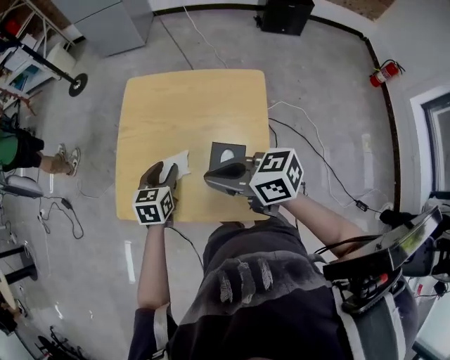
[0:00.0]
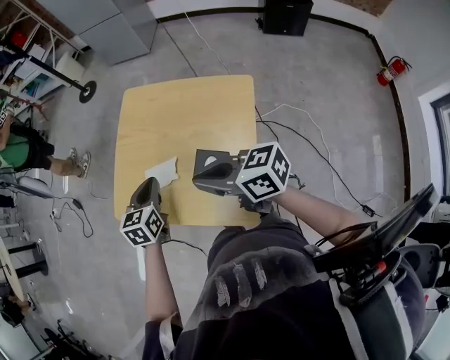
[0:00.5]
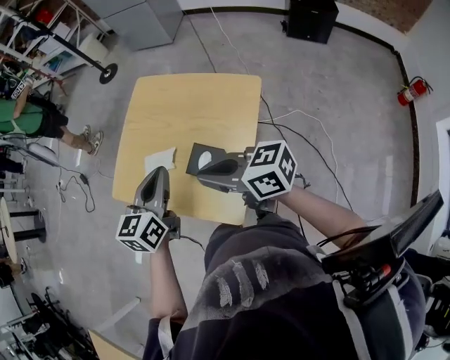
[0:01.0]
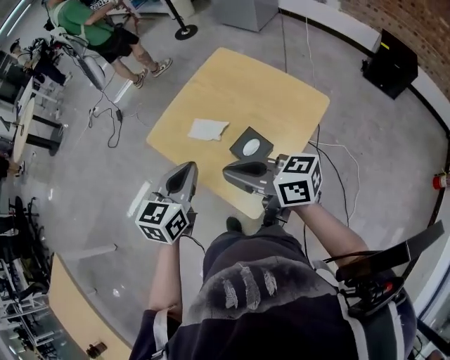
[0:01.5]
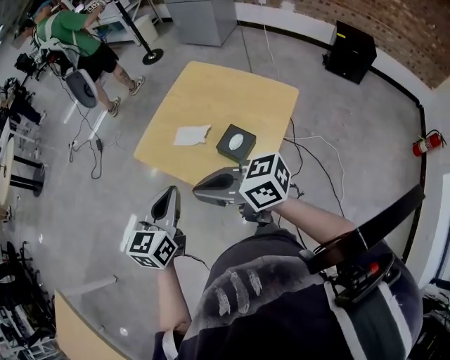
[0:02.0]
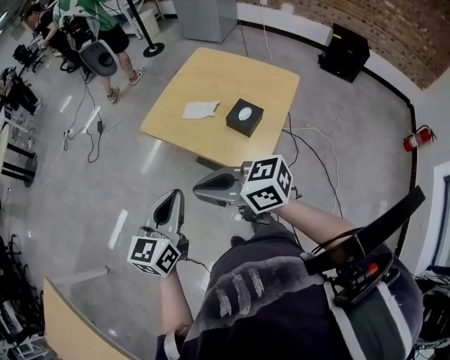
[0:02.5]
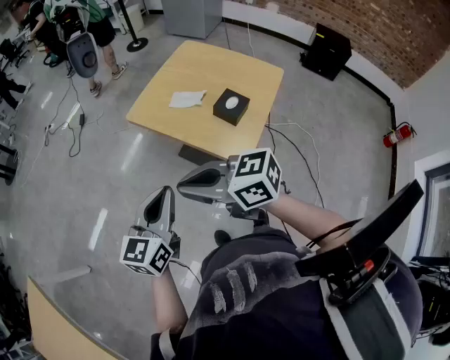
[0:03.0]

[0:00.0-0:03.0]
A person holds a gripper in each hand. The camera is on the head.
0:00.0 to 0:01.5: The left gripper shifts approximately 25 cm backward and upward, rotates approximately 30 degrees, and closes; the right gripper shifts approximately 15 cm backward and upward, and changes its angle by some 30 degrees.
0:01.5 to 0:03.0: The two grippers go roughly 30 cm to the left and backward.

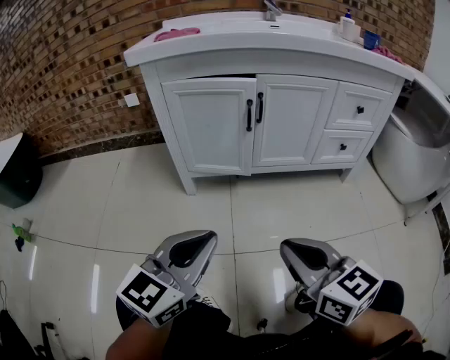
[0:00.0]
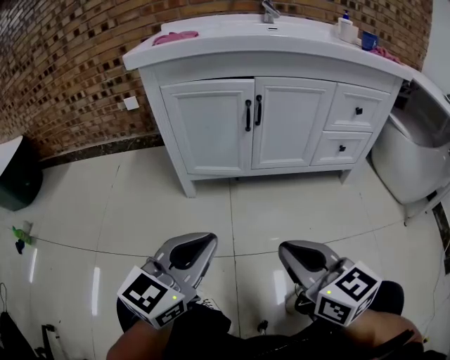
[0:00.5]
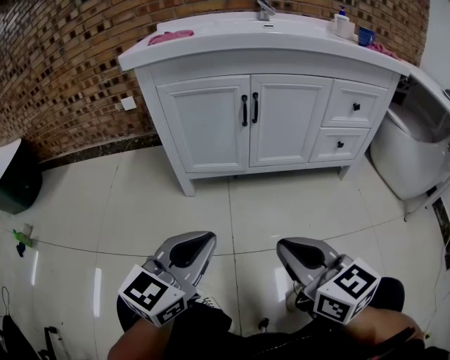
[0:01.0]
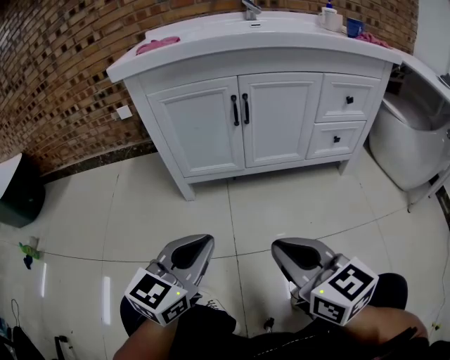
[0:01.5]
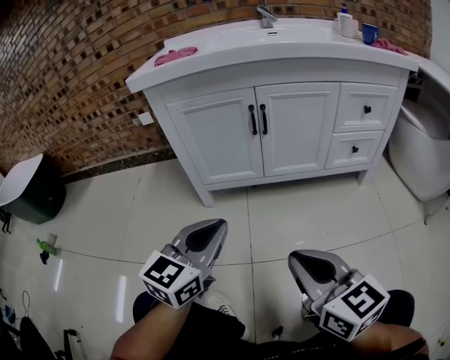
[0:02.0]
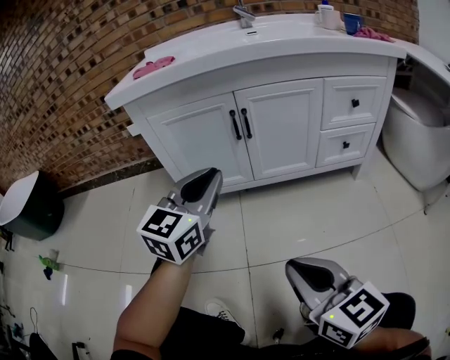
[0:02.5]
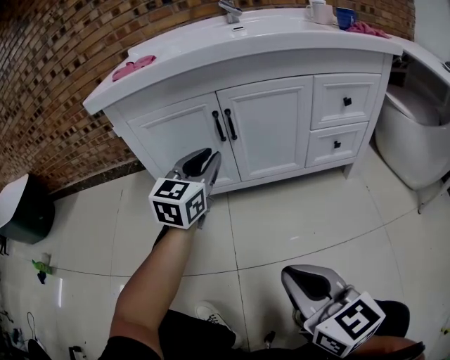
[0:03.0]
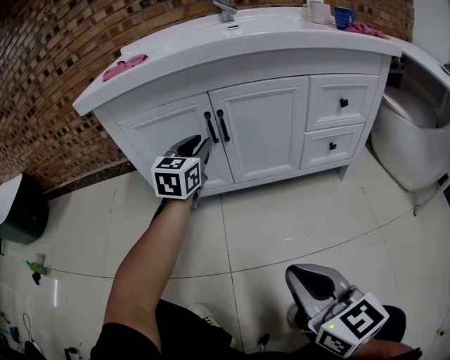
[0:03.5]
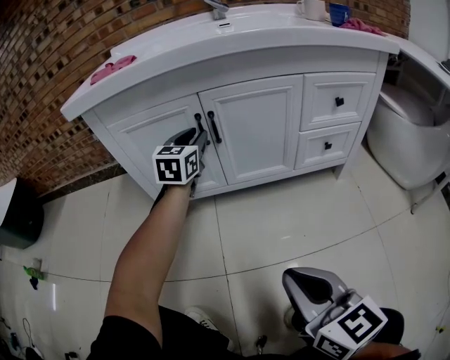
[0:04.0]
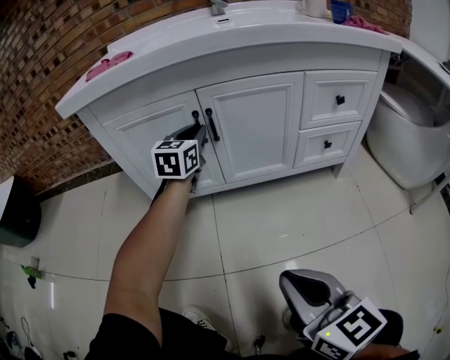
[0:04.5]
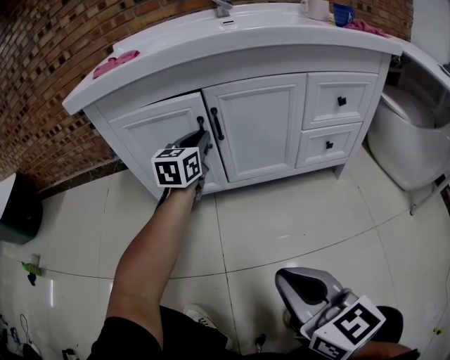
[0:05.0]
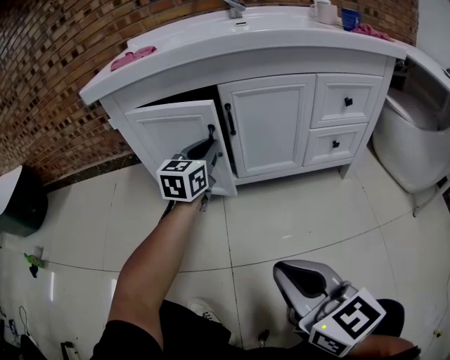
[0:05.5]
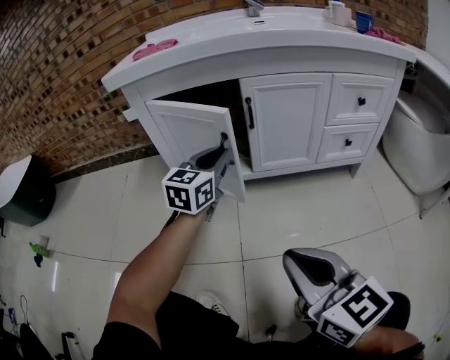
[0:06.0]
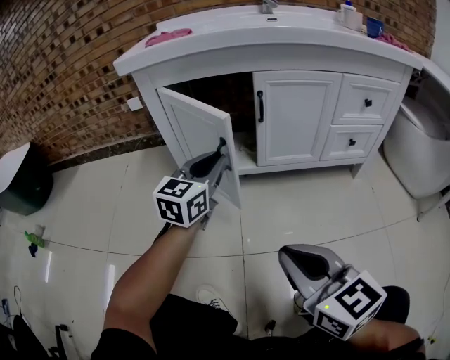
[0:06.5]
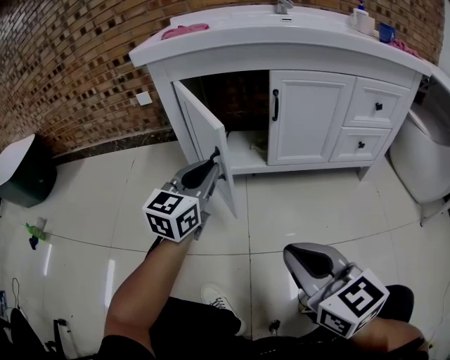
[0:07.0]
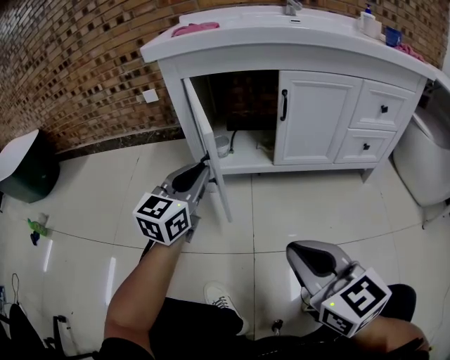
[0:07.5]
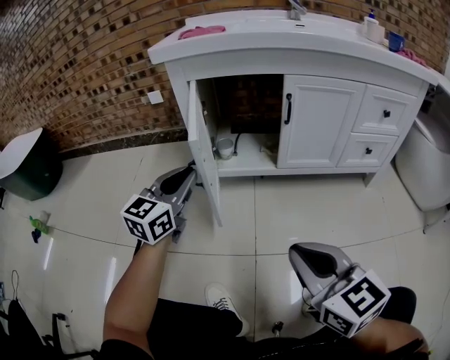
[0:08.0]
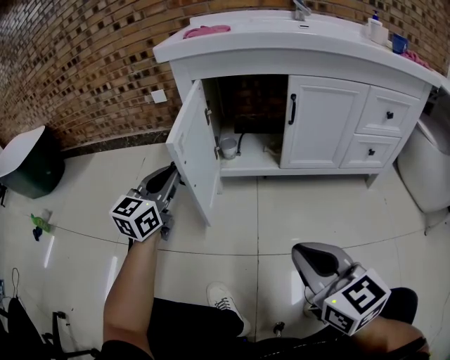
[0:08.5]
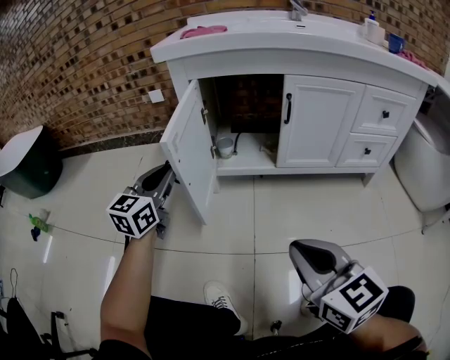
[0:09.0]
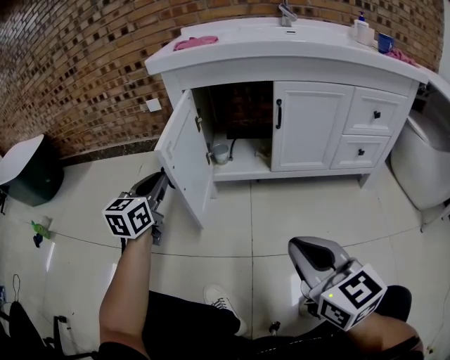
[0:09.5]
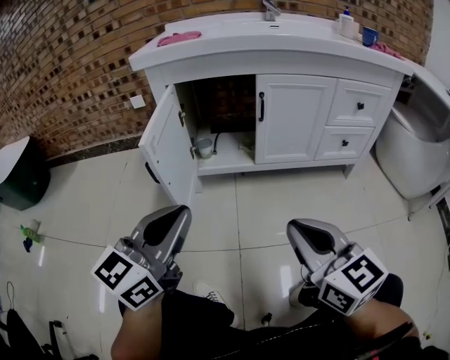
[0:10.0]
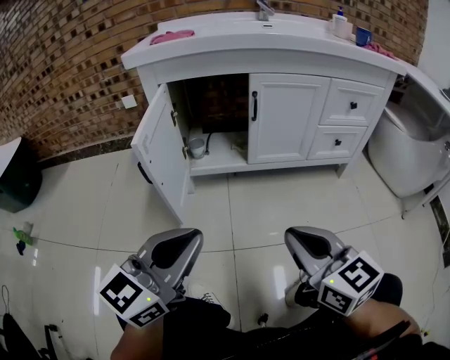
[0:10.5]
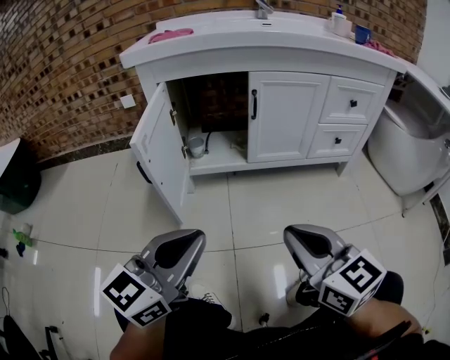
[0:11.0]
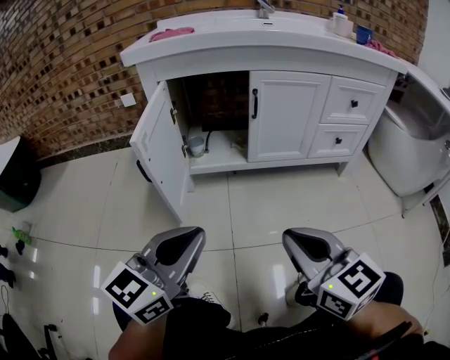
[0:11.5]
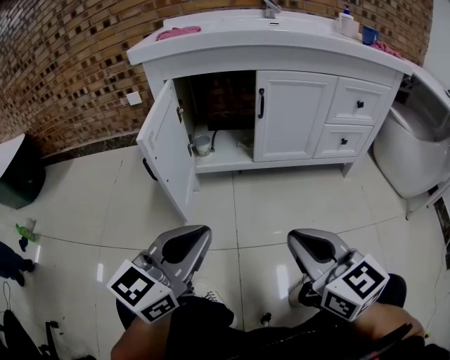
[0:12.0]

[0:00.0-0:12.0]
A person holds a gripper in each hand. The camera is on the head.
0:00.0 to 0:02.0: The left gripper is displaced forward by roughly 5 cm.
0:02.0 to 0:04.0: The left gripper is displaced forward by some 35 cm, and opens its fingers. Meanwhile the right gripper travels to the right by approximately 10 cm.
0:04.0 to 0:06.0: The right gripper heads to the left, covering some 5 cm. Meanwhile the left gripper goes roughly 15 cm backward, and closes.
0:06.0 to 0:08.0: The left gripper moves to the left and backward, approximately 20 cm. The right gripper is displaced to the left by roughly 5 cm.
0:08.0 to 0:10.0: The left gripper shifts about 20 cm backward and upward. The right gripper moves about 5 cm.
0:10.0 to 0:12.0: The left gripper ends up about 5 cm from where it was.

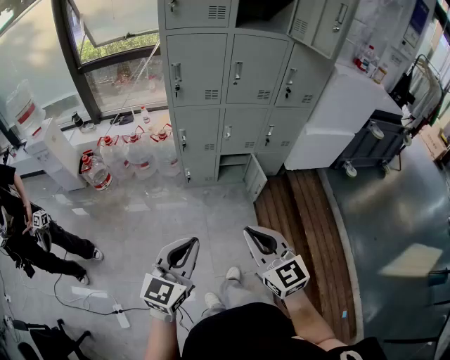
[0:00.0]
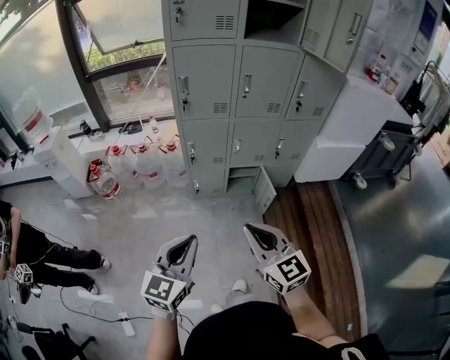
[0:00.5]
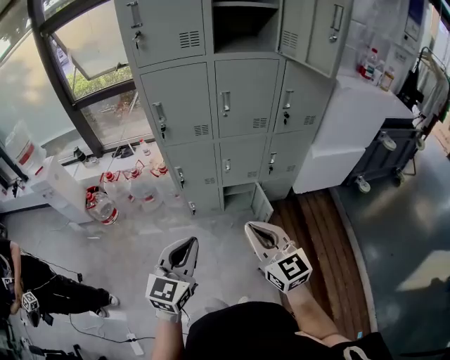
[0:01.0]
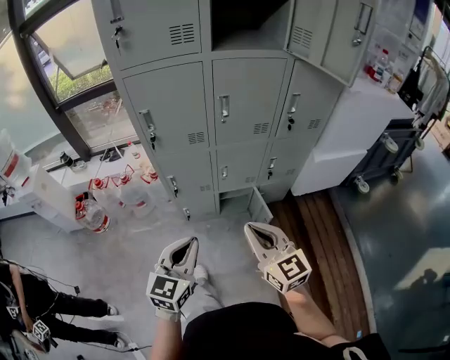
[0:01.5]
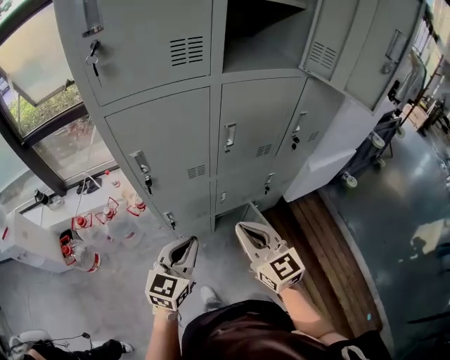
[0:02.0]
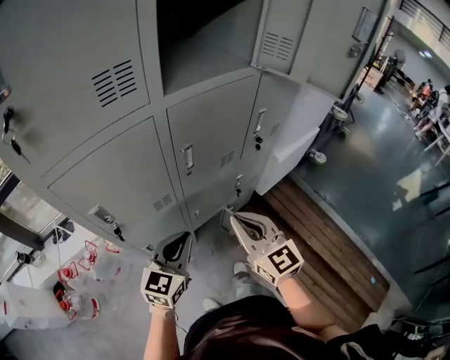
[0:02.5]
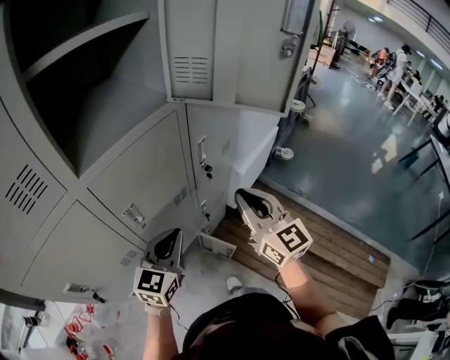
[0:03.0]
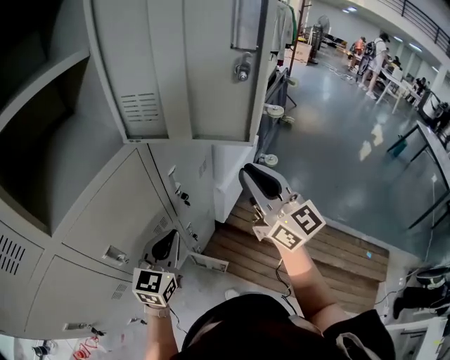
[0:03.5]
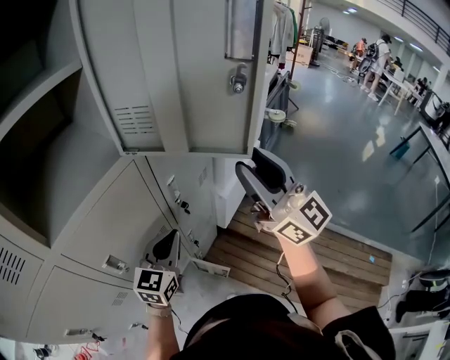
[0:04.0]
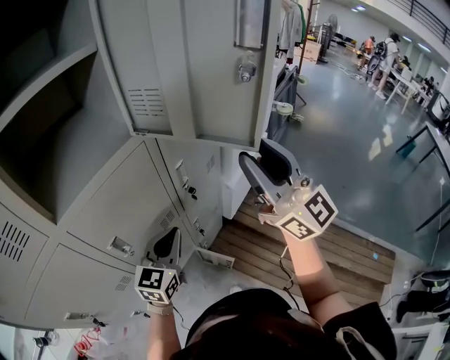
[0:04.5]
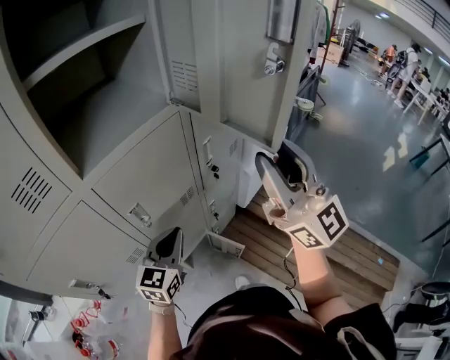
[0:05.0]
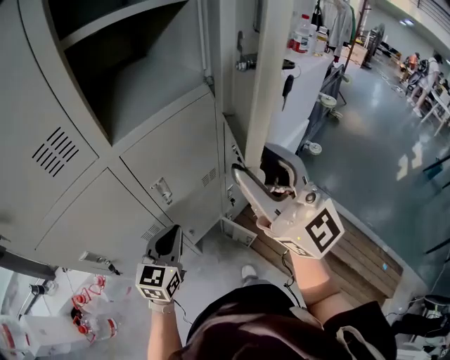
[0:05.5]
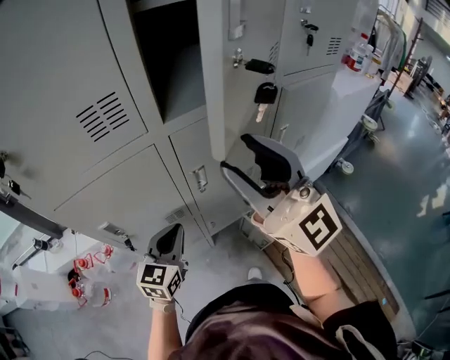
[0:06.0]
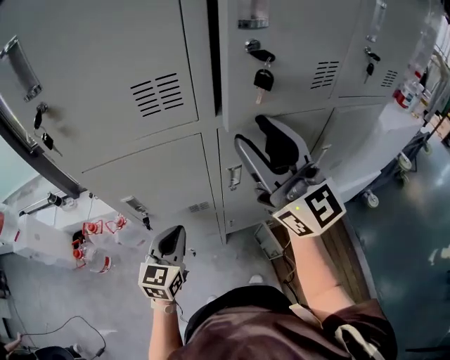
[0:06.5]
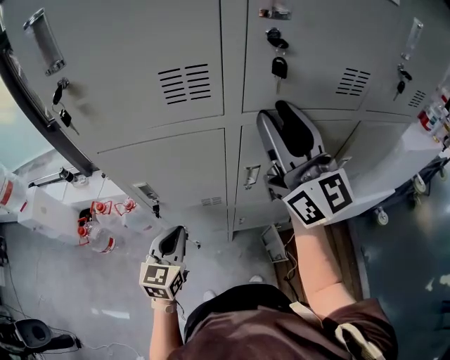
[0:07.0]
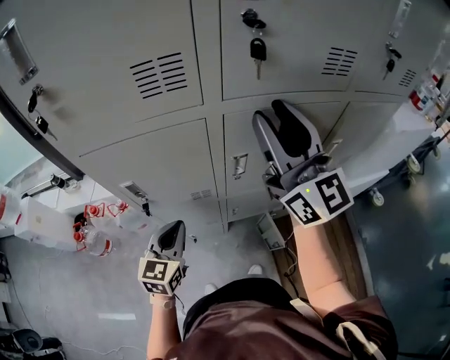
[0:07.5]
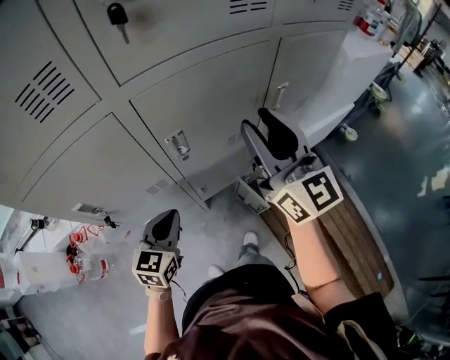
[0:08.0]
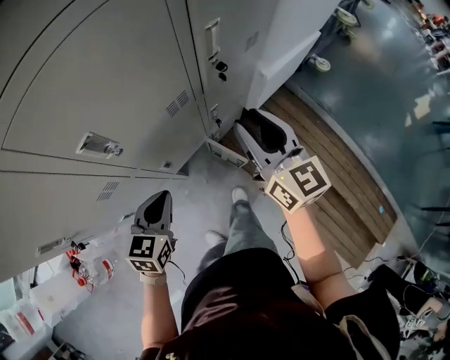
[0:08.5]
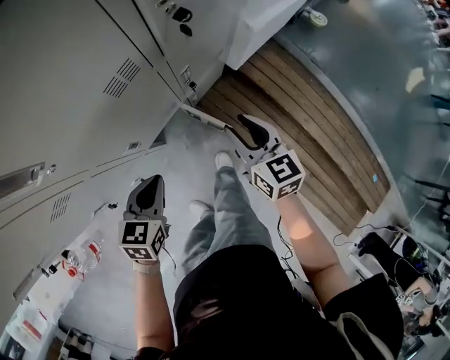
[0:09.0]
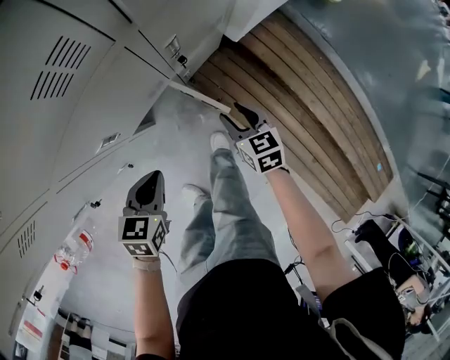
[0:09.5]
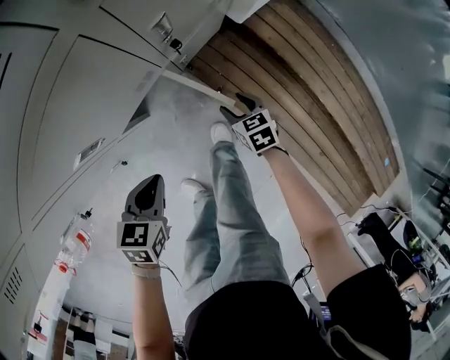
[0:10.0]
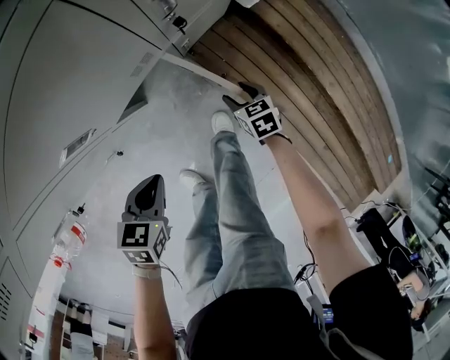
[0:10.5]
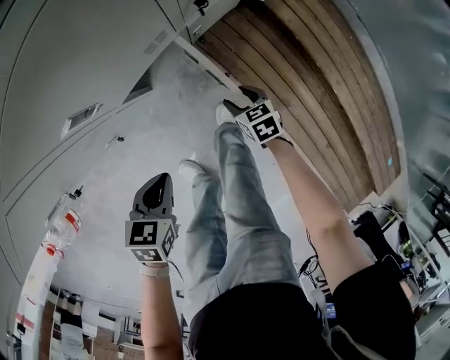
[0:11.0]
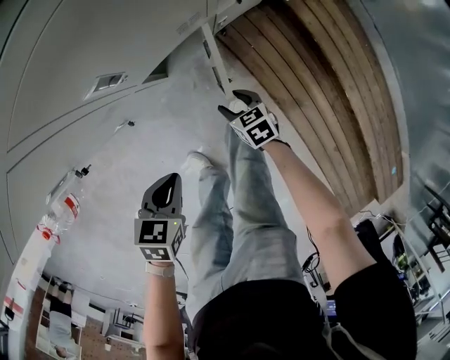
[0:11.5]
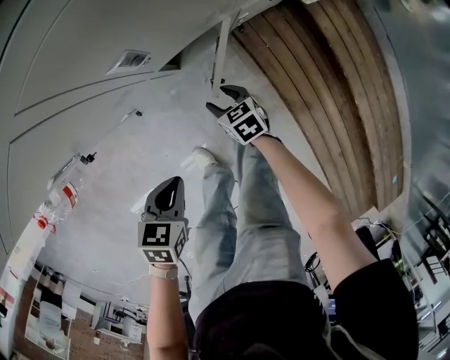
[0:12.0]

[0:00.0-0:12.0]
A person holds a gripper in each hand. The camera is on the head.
0:00.0 to 0:02.0: The pair of grippers is taken forward, some 50 cm.
0:02.0 to 0:04.0: The pair of grippers is taken about 40 cm. The left gripper rotates roughly 30 degrees. The right gripper tips its fingers upward by some 40 degrees, and opens up.
0:04.0 to 0:06.0: The right gripper moves some 30 cm, and changes its angle by approximately 30 degrees. The left gripper changes place by approximately 30 cm, and rotates about 30 degrees.
0:06.0 to 0:08.0: The left gripper travels downward by approximately 5 cm, and reaches approximately 10 cm to the left, then returns, while the right gripper is displaced downward, to the right and forward by roughly 15 cm, and changes its angle by about 30 degrees.
0:08.0 to 0:10.0: The right gripper goes approximately 80 cm downward, and points its fingers roughly 70 degrees further downward; the left gripper heads downward, covering approximately 40 cm, and tilts its fingers approximately 30 degrees downward.
0:10.0 to 0:12.0: The right gripper heads to the left, covering some 25 cm, and turns by approximately 20 degrees. Meanwhile the left gripper heads backward and to the left, covering roughly 20 cm.
